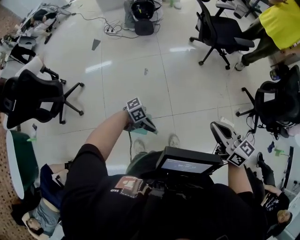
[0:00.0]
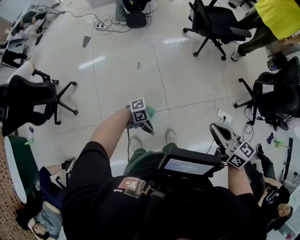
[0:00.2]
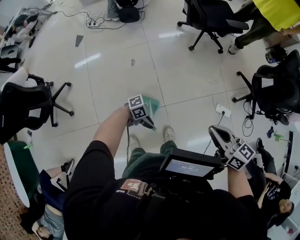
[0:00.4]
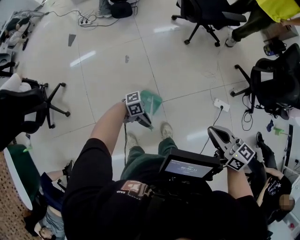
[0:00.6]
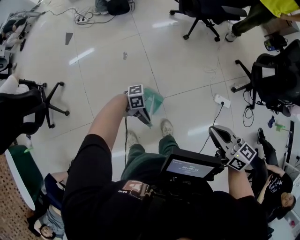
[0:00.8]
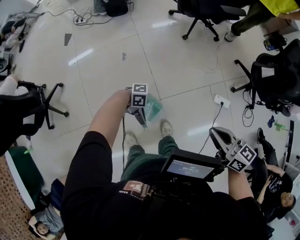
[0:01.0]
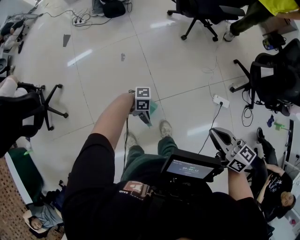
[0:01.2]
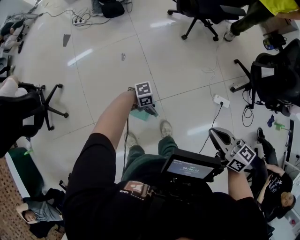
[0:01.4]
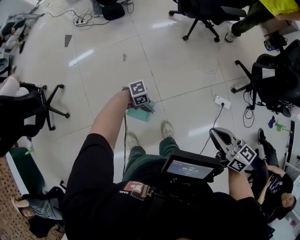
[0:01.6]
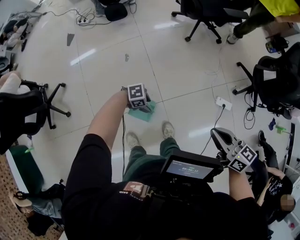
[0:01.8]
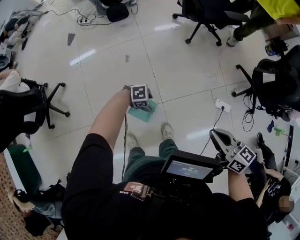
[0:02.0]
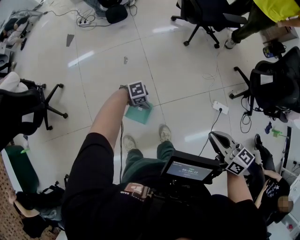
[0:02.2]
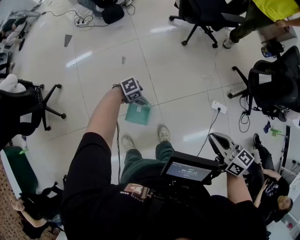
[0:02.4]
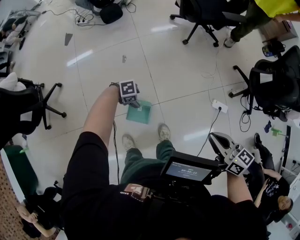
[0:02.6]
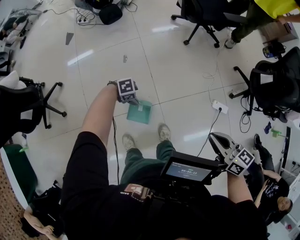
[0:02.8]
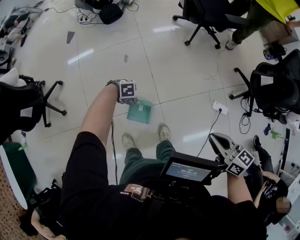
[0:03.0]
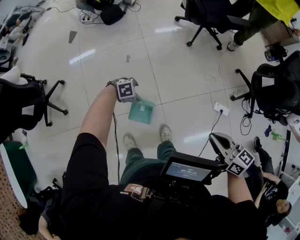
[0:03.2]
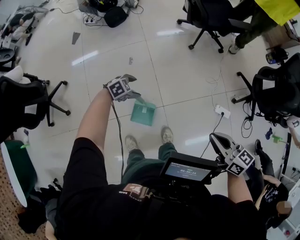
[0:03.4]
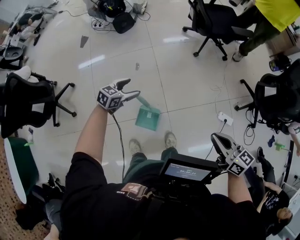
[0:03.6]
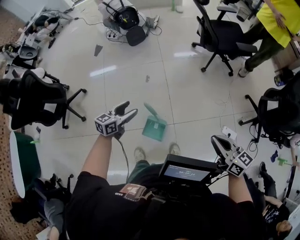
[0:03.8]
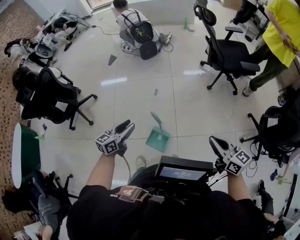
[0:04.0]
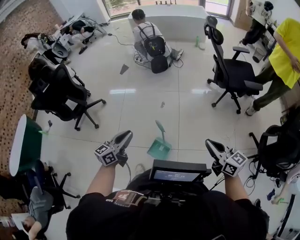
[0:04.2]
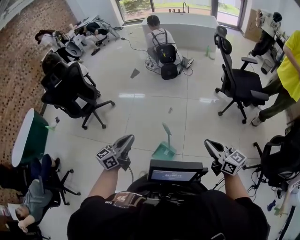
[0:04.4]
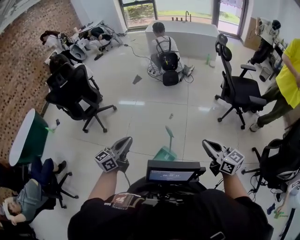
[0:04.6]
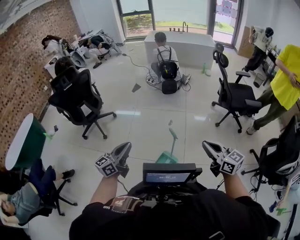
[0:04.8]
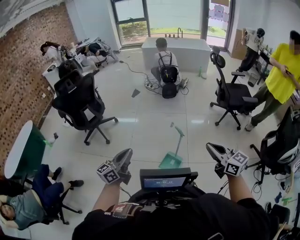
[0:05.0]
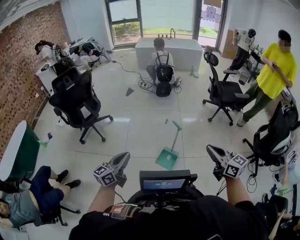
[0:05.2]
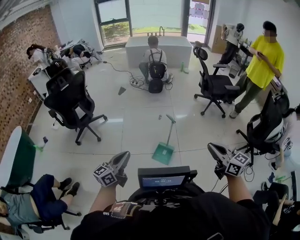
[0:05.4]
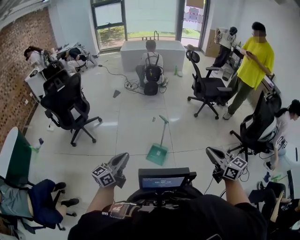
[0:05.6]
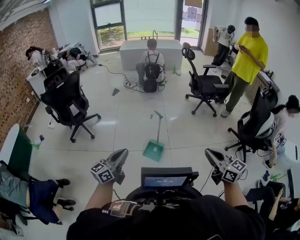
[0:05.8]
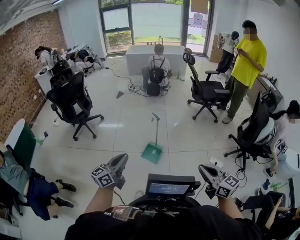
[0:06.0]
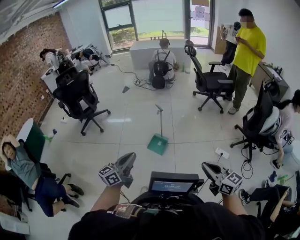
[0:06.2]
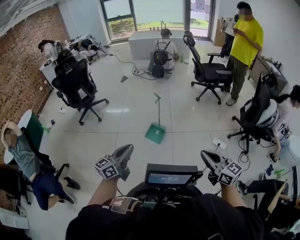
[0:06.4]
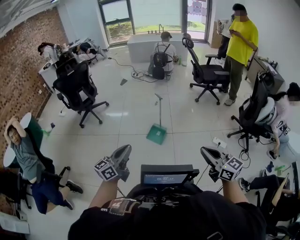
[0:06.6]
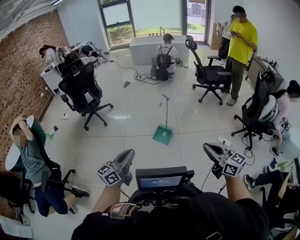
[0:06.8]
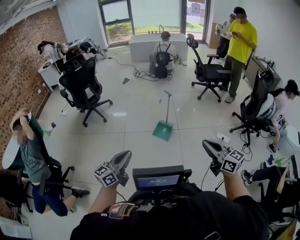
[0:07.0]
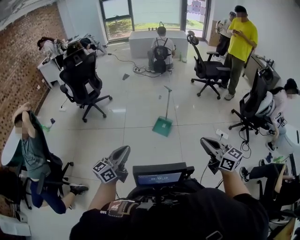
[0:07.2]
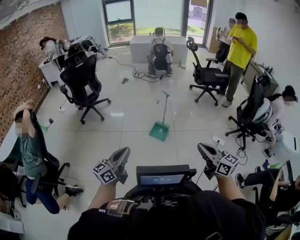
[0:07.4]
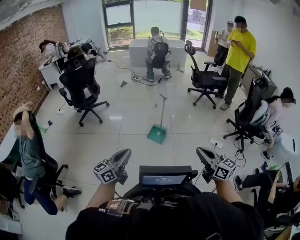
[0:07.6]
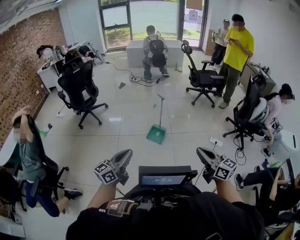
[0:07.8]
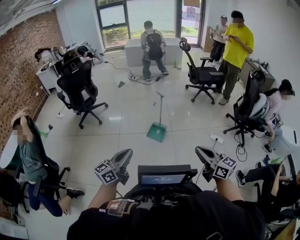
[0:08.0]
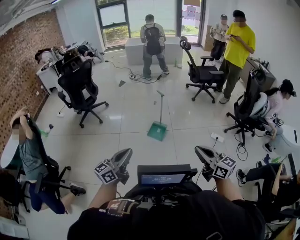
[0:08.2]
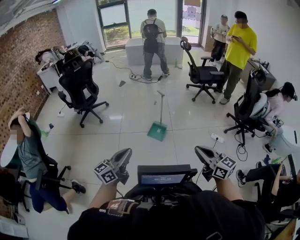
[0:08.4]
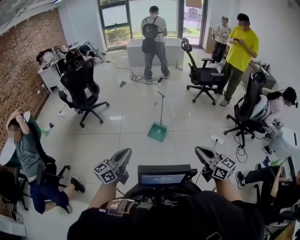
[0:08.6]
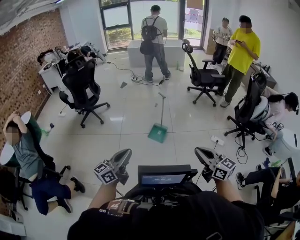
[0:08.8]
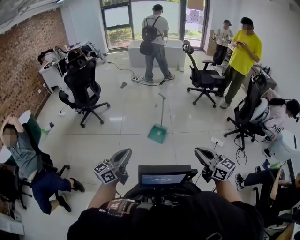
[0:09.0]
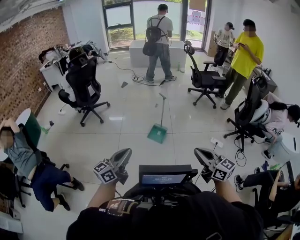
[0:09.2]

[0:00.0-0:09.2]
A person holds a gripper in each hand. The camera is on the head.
0:00.0 to 0:01.6: The two grippers go approximately 20 cm downward. The left gripper swivels about 30 degrees, and opens.
0:01.6 to 0:03.0: The left gripper changes place by some 10 cm, and changes its angle by approximately 30 degrees.
0:03.0 to 0:04.6: The right gripper shifts some 30 cm upward, and changes its angle by about 30 degrees, while the left gripper travels upward by some 60 cm, angles its fingers upward, by about 70 degrees, and closes.
0:04.6 to 0:06.2: Both grippers are carried backward, some 90 cm.
0:06.2 to 0:07.6: The left gripper is displaced backward and to the left by approximately 40 cm, while the right gripper goes about 35 cm to the left and backward.
0:07.6 to 0:09.2: There are only small adjustments of the grippers.

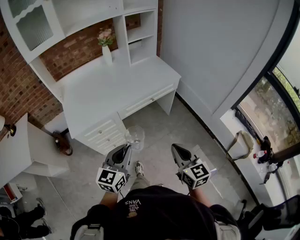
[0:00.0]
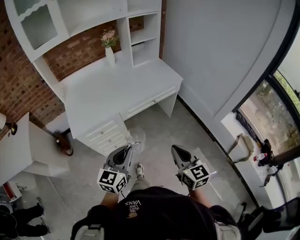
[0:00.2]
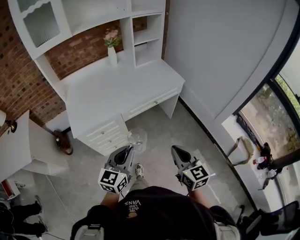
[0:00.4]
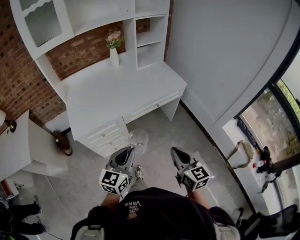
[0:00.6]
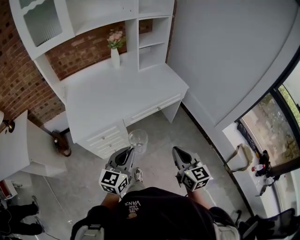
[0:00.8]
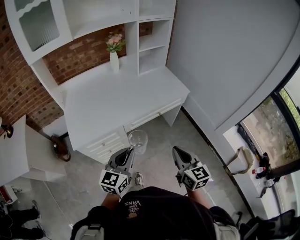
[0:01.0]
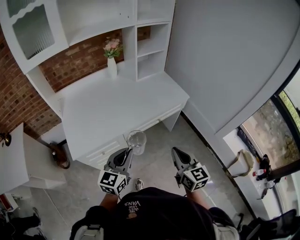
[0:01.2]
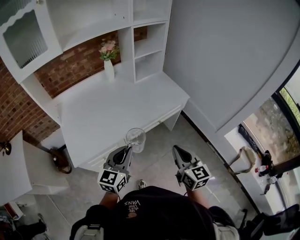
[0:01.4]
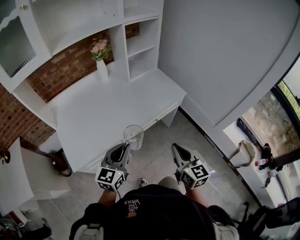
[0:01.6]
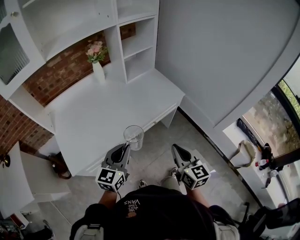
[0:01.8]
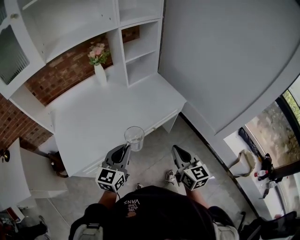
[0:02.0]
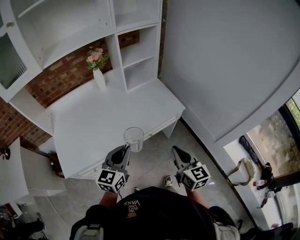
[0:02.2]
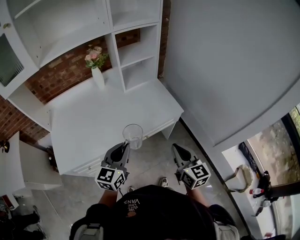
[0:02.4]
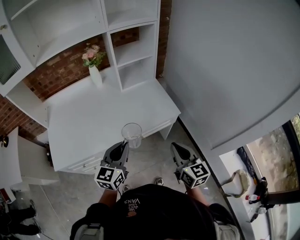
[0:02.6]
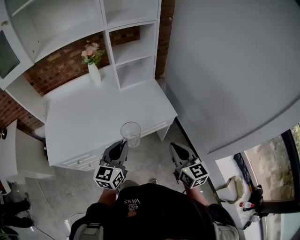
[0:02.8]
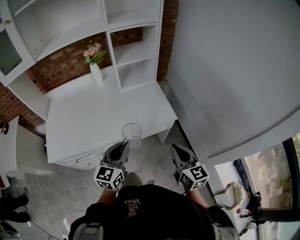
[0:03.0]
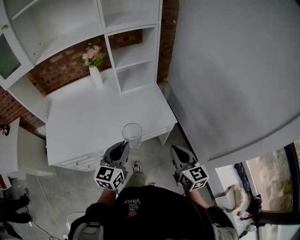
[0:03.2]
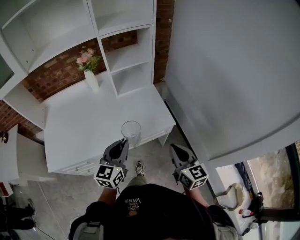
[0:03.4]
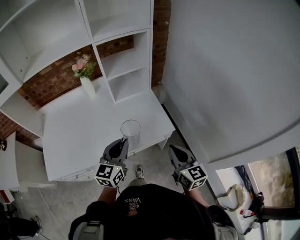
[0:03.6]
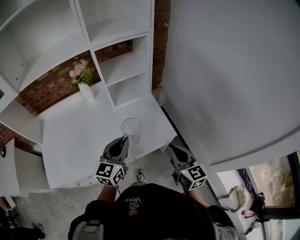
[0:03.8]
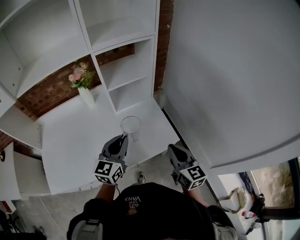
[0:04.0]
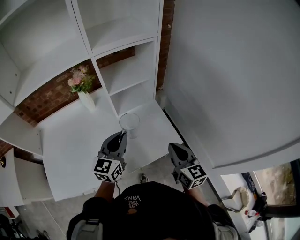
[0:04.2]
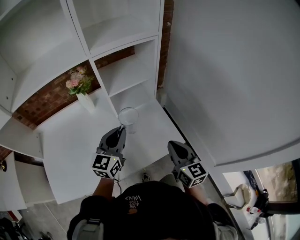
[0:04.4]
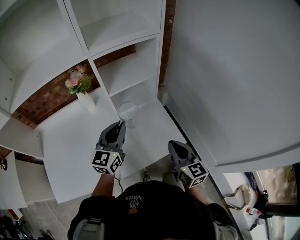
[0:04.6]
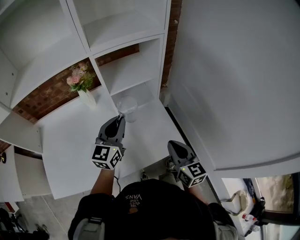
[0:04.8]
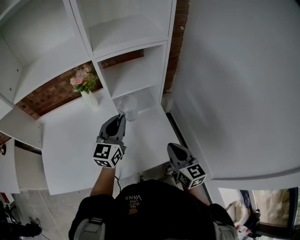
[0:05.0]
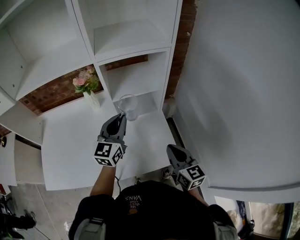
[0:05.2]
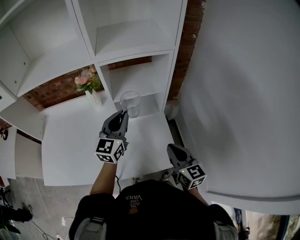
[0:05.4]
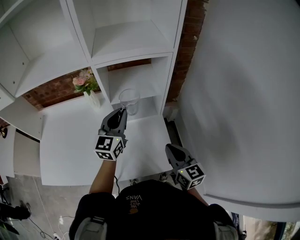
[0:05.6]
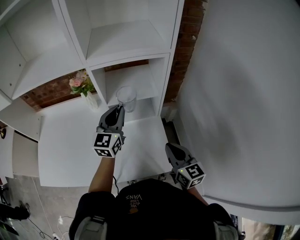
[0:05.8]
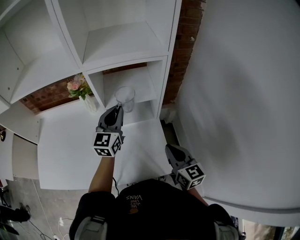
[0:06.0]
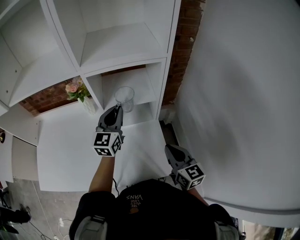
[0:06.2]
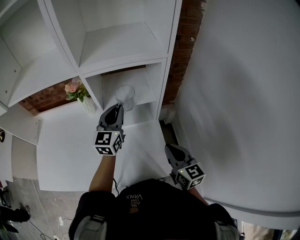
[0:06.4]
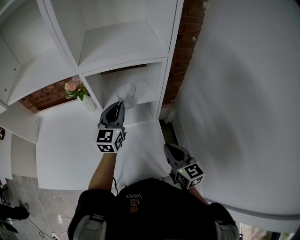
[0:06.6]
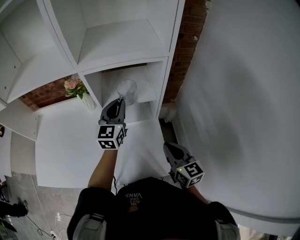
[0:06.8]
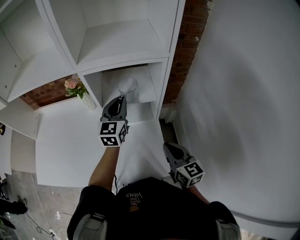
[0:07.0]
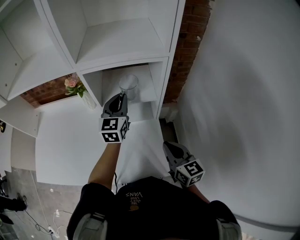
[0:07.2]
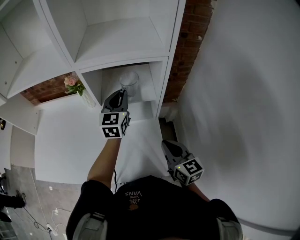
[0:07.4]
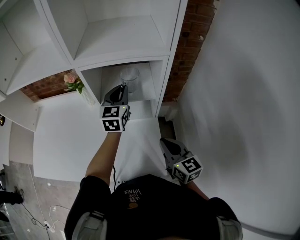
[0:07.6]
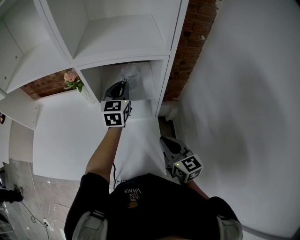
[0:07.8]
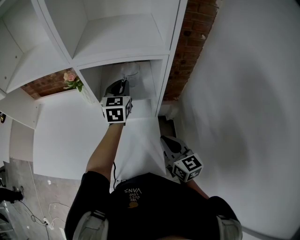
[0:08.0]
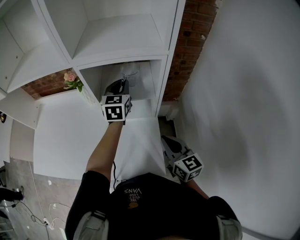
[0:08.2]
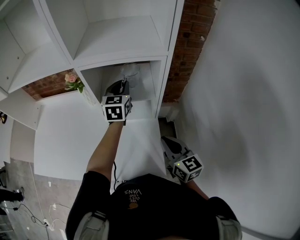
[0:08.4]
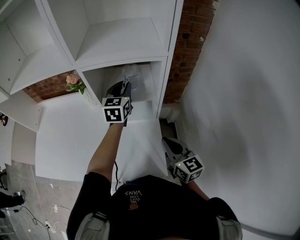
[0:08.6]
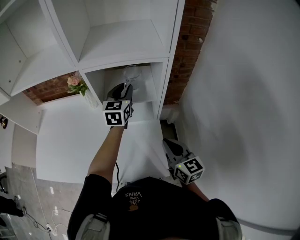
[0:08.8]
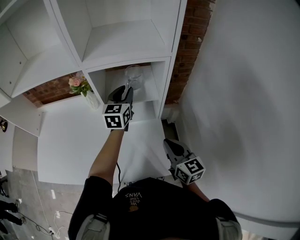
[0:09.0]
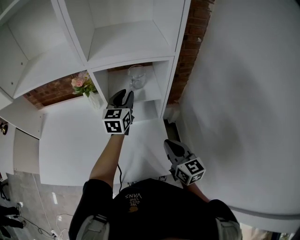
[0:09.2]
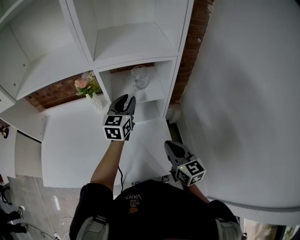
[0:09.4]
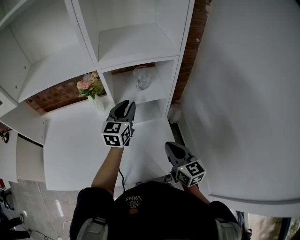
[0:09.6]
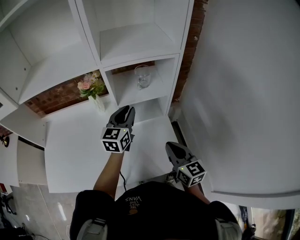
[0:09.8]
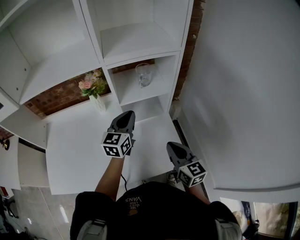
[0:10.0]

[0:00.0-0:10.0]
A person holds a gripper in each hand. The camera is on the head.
0:00.0 to 0:01.4: Both grippers move forward, some 20 cm.
0:01.4 to 0:02.8: The two grippers go approximately 25 cm to the right and forward.
0:02.8 to 0:04.2: Both grippers travel together forward, about 25 cm.
0:04.2 to 0:05.8: The two grippers go about 15 cm forward. The left gripper swivels approximately 20 degrees.
0:05.8 to 0:07.2: The left gripper is displaced forward by roughly 10 cm.
0:07.2 to 0:08.6: The left gripper moves about 5 cm.
0:08.6 to 0:10.0: The right gripper heads to the left and backward, covering some 10 cm. Meanwhile the left gripper shifts some 15 cm backward and to the left.

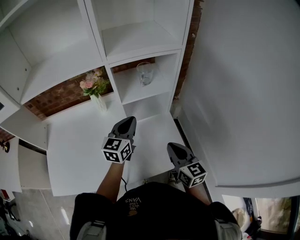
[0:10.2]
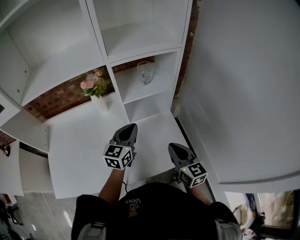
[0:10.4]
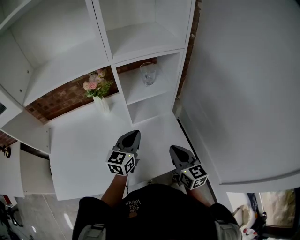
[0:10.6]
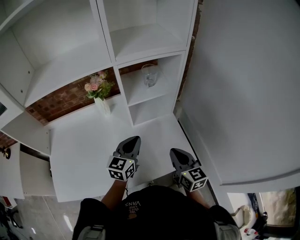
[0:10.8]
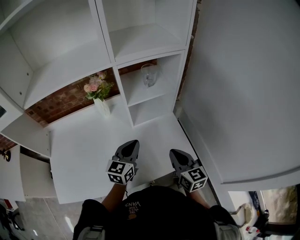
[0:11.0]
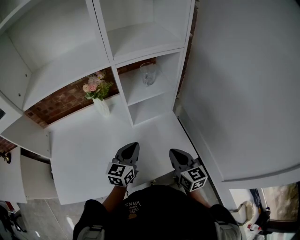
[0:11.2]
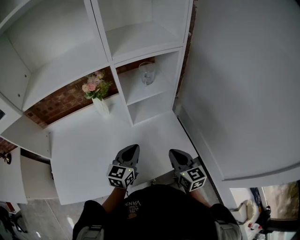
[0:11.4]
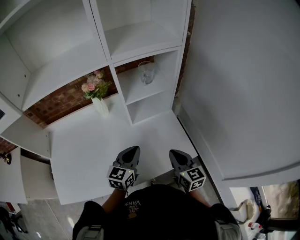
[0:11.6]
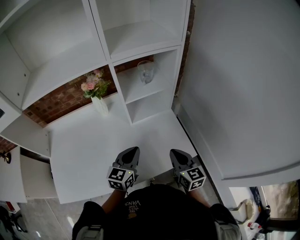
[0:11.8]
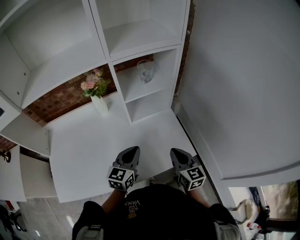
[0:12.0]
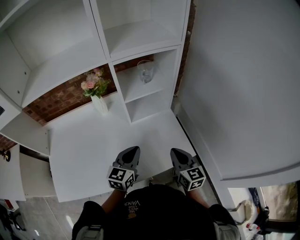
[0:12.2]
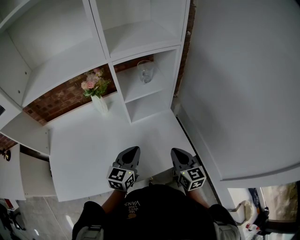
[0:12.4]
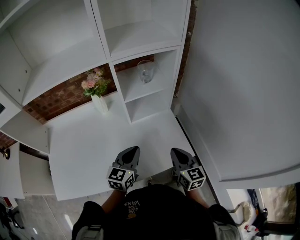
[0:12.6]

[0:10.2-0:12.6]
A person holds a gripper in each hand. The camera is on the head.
0:10.2 to 0:11.4: The right gripper shifts by about 5 cm; the left gripper travels backward and downward by some 10 cm.
0:11.4 to 0:12.6: The grippers make only small movements.

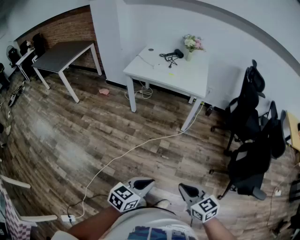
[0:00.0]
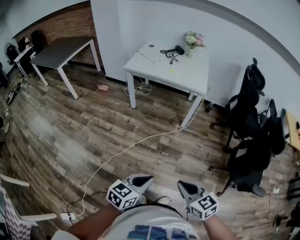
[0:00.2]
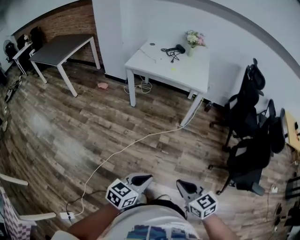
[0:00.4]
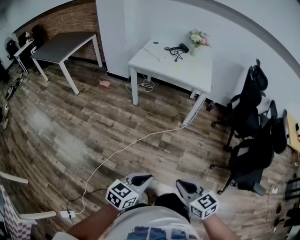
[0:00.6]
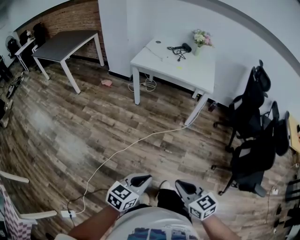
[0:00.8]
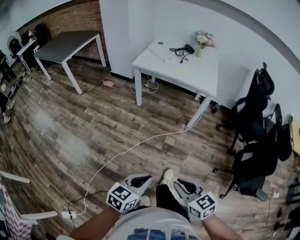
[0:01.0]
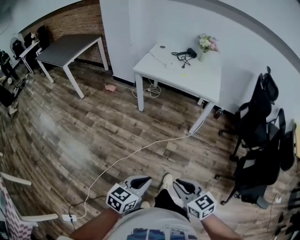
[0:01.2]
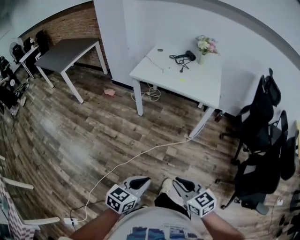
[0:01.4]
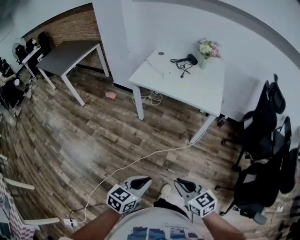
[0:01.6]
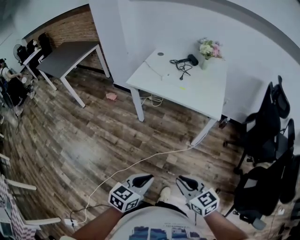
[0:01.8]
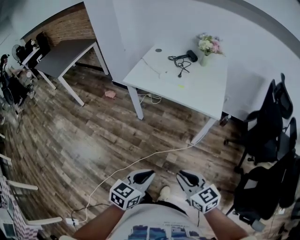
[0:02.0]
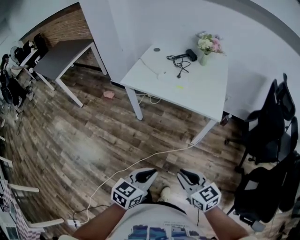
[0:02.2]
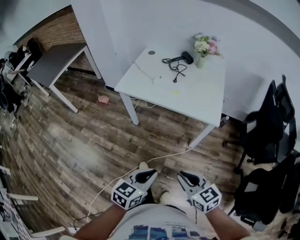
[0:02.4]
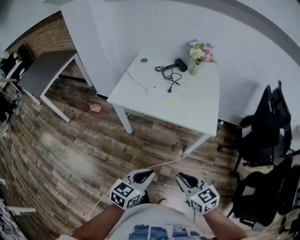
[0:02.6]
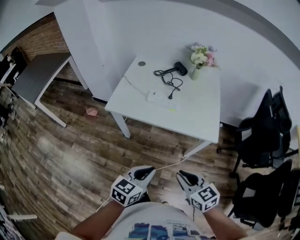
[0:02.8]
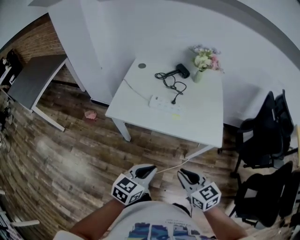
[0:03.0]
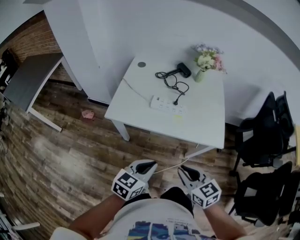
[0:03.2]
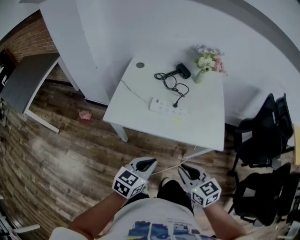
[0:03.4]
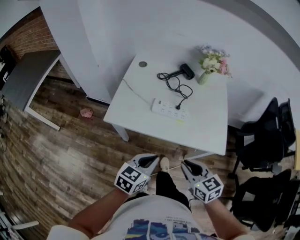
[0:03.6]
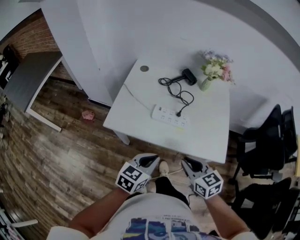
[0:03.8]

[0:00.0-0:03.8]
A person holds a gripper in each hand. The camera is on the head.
0:00.0 to 0:01.2: The grippers both shift to the left and forward by approximately 10 cm.
0:01.2 to 0:02.6: The pair of grippers is taken forward, roughly 40 cm.
0:02.6 to 0:03.8: Both grippers travel together forward, approximately 30 cm.
